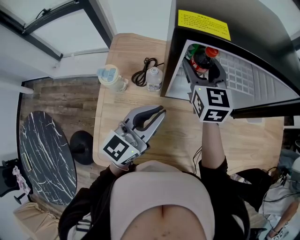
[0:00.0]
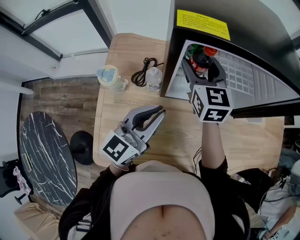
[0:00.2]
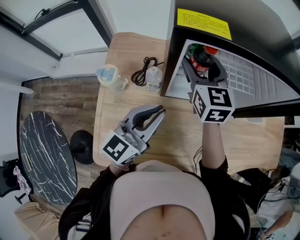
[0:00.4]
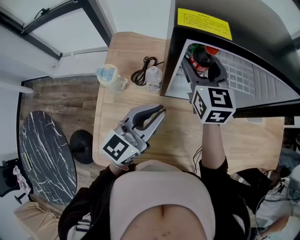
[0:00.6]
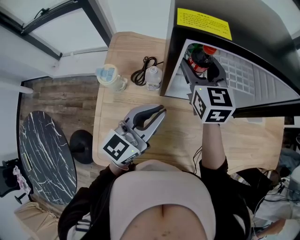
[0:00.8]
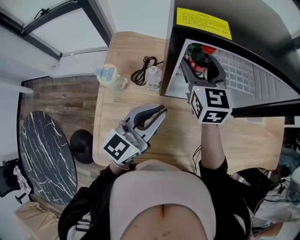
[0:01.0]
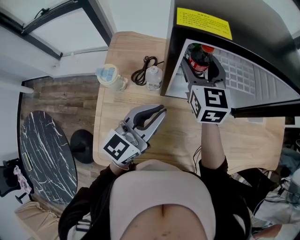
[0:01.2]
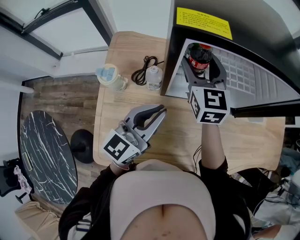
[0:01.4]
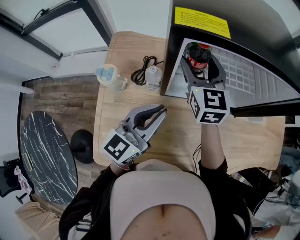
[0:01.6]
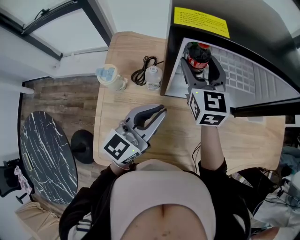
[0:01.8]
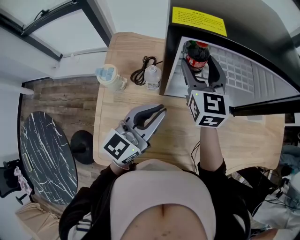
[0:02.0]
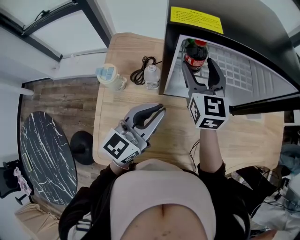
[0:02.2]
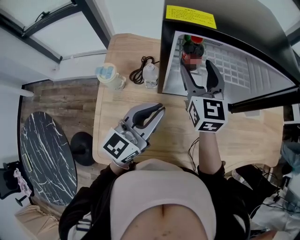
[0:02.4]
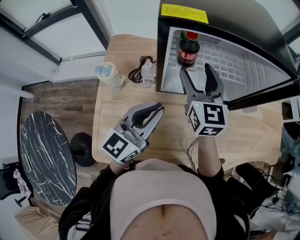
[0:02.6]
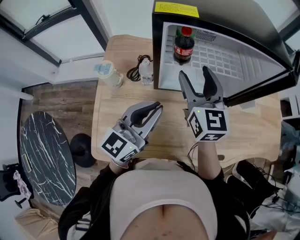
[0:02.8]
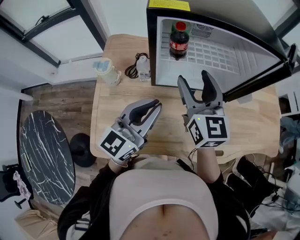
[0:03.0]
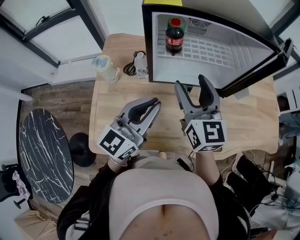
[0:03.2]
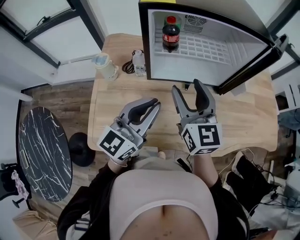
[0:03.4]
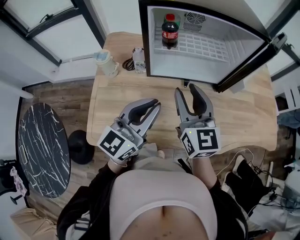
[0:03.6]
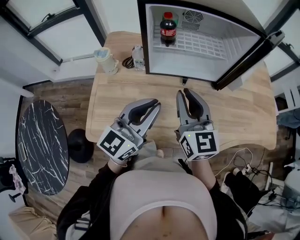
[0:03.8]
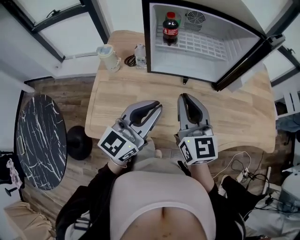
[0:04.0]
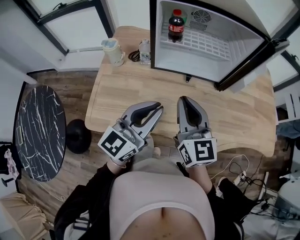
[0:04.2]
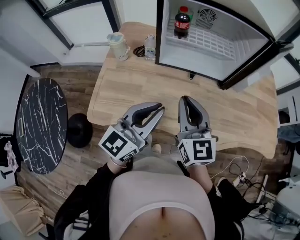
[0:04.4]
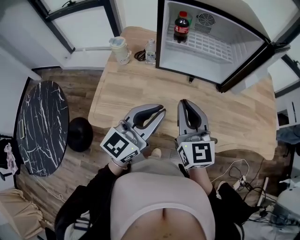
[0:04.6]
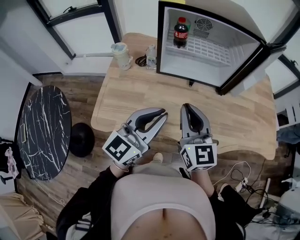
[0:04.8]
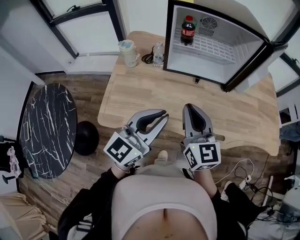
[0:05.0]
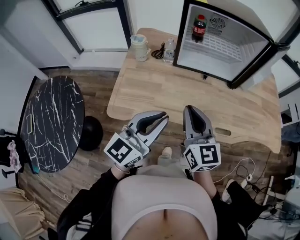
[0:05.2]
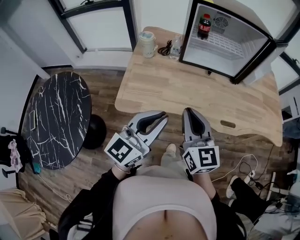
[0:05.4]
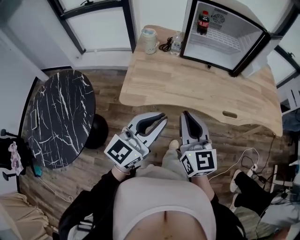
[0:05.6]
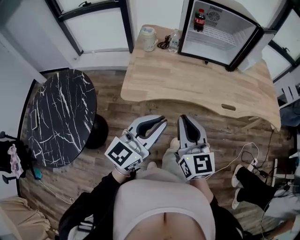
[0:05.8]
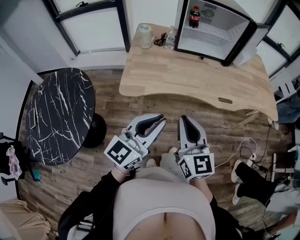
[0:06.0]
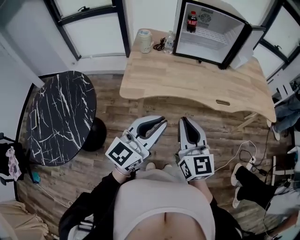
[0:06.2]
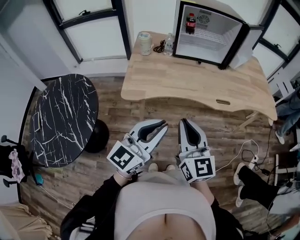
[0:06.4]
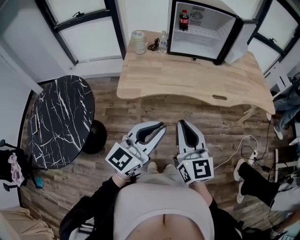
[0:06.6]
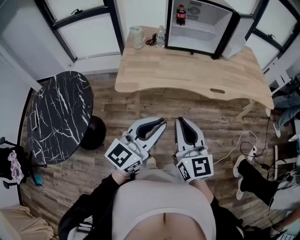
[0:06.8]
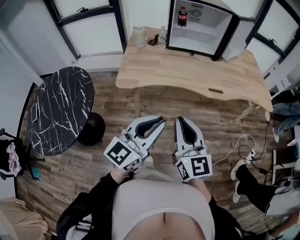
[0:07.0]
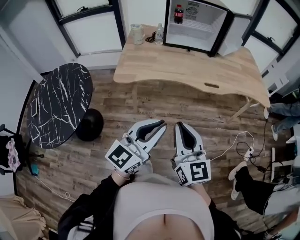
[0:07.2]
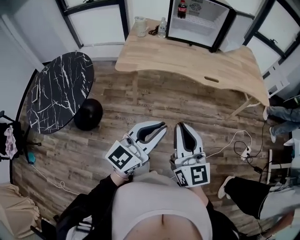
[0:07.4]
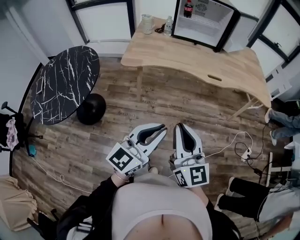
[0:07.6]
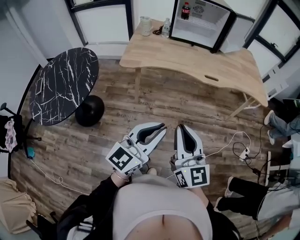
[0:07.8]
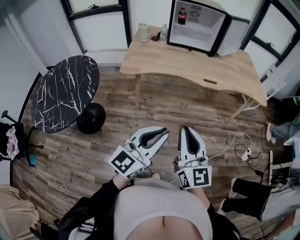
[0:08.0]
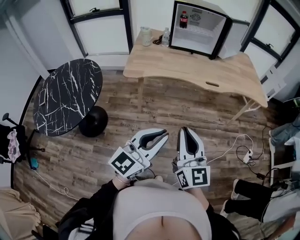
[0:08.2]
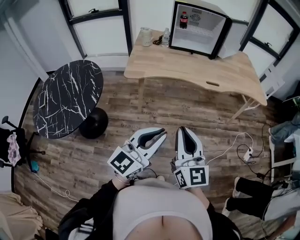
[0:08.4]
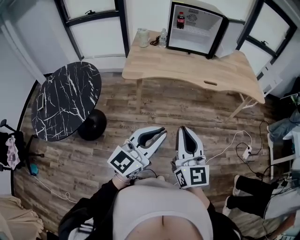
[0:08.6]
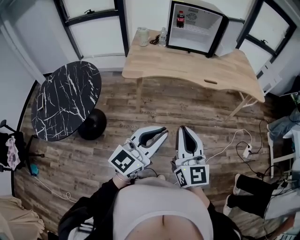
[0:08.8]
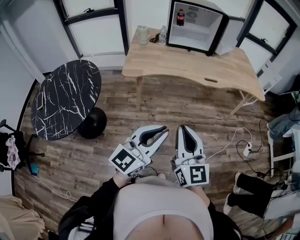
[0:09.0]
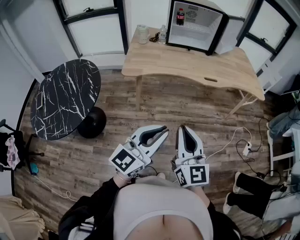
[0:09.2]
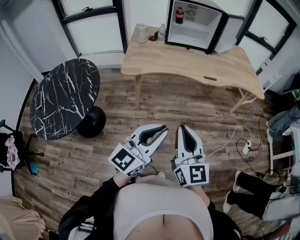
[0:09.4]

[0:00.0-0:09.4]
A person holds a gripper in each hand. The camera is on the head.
0.0 to 1.6 s: Neither gripper changes place.
1.6 to 3.2 s: The left gripper goes about 10 cm backward. Meanwhile the right gripper travels backward and to the right by approximately 20 cm.
3.2 to 4.8 s: Both grippers move backward, some 15 cm. The right gripper closes up.
4.8 to 6.2 s: Both grippers travel together backward, roughly 30 cm.
6.2 to 7.8 s: Both grippers travel together backward and to the right, approximately 25 cm.
7.8 to 9.4 s: The left gripper travels to the left by some 5 cm. The right gripper changes place by roughly 5 cm.

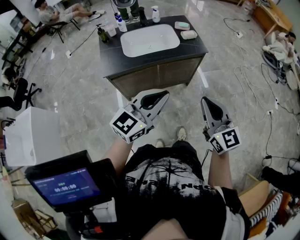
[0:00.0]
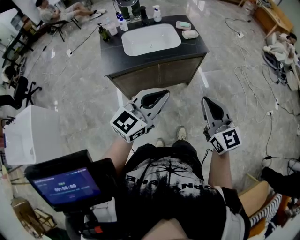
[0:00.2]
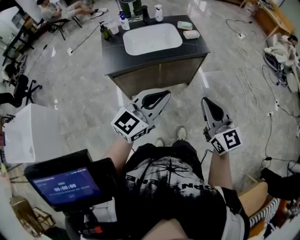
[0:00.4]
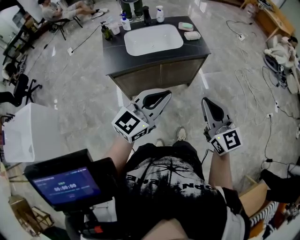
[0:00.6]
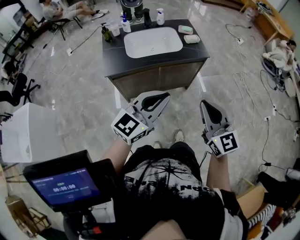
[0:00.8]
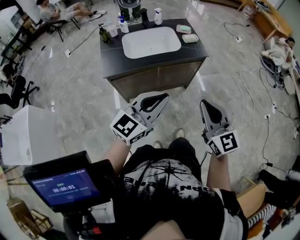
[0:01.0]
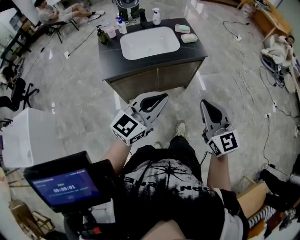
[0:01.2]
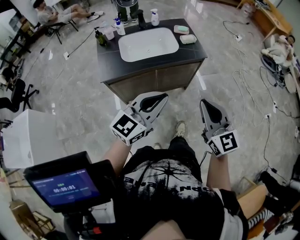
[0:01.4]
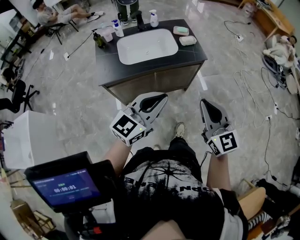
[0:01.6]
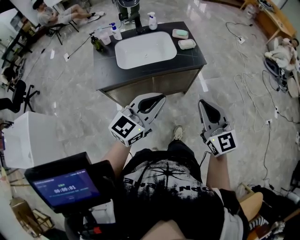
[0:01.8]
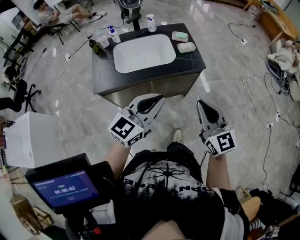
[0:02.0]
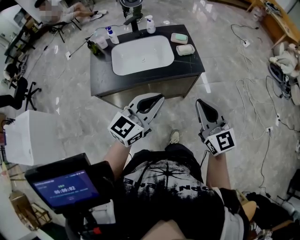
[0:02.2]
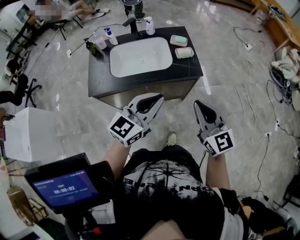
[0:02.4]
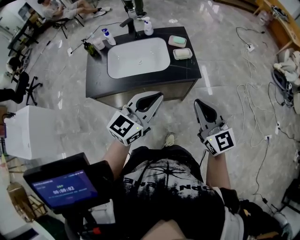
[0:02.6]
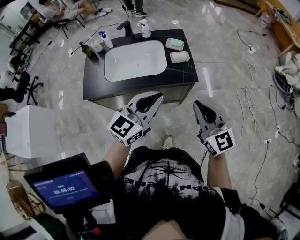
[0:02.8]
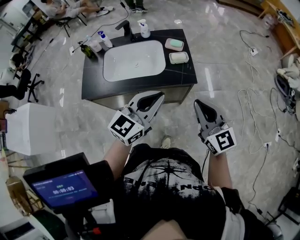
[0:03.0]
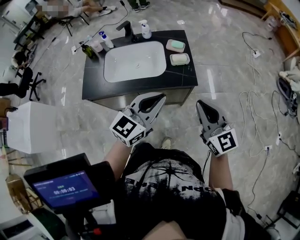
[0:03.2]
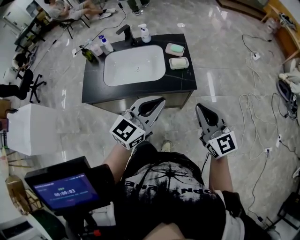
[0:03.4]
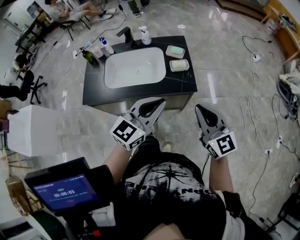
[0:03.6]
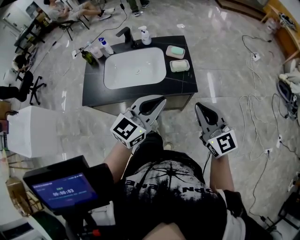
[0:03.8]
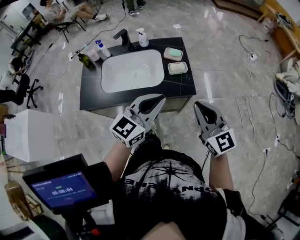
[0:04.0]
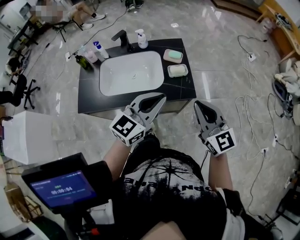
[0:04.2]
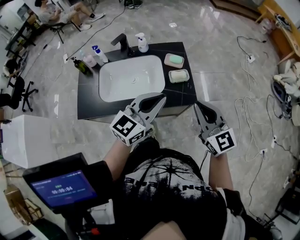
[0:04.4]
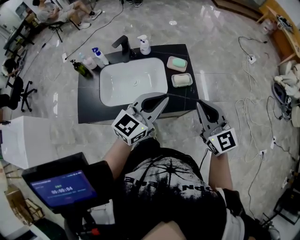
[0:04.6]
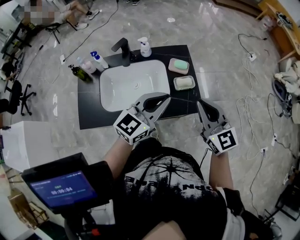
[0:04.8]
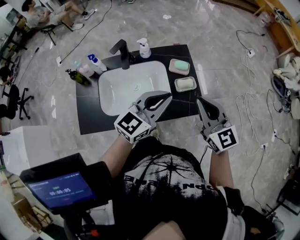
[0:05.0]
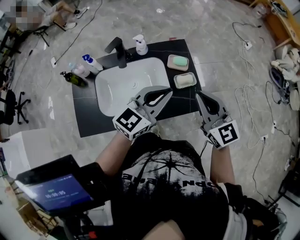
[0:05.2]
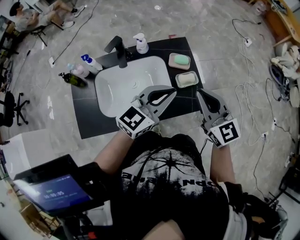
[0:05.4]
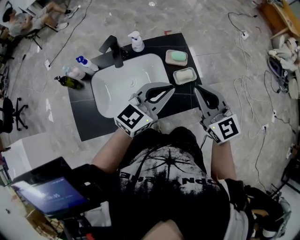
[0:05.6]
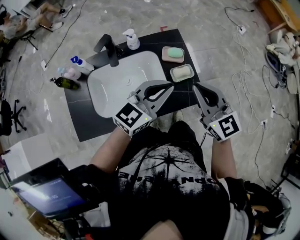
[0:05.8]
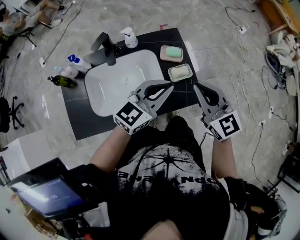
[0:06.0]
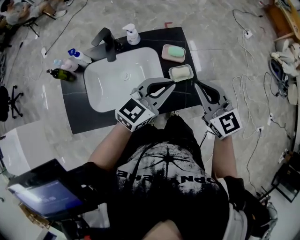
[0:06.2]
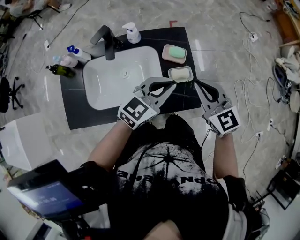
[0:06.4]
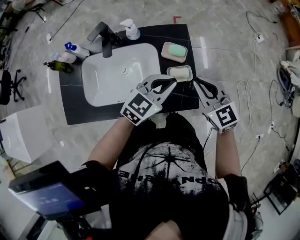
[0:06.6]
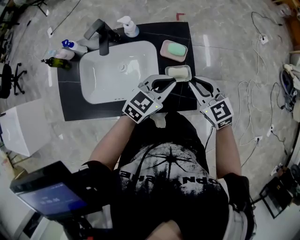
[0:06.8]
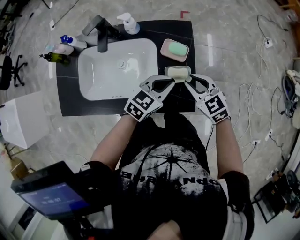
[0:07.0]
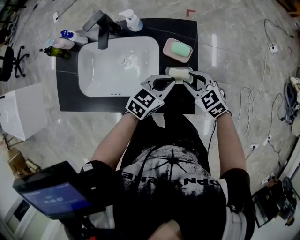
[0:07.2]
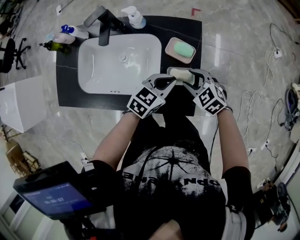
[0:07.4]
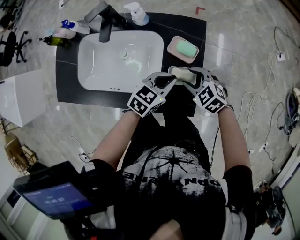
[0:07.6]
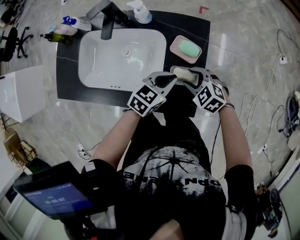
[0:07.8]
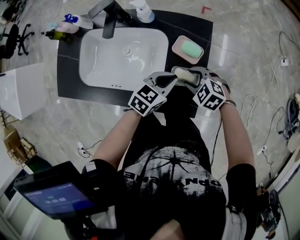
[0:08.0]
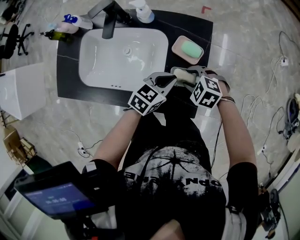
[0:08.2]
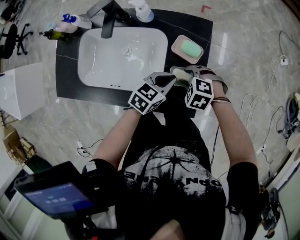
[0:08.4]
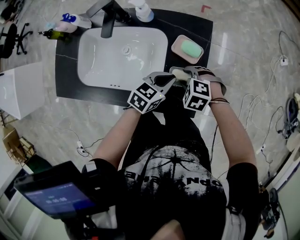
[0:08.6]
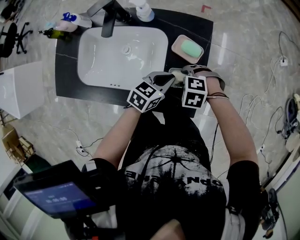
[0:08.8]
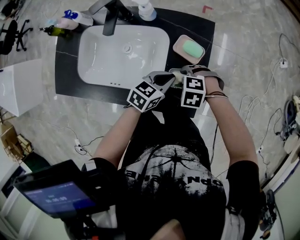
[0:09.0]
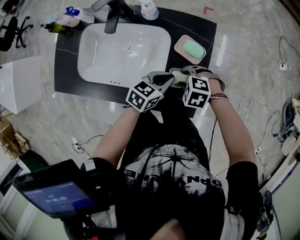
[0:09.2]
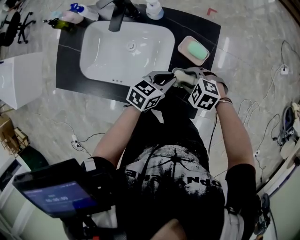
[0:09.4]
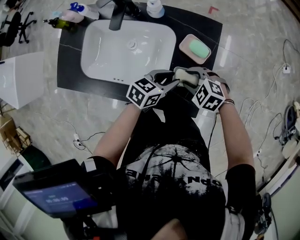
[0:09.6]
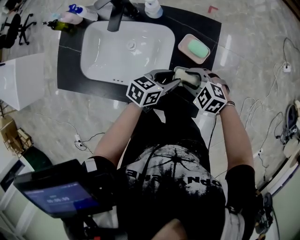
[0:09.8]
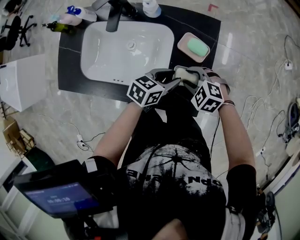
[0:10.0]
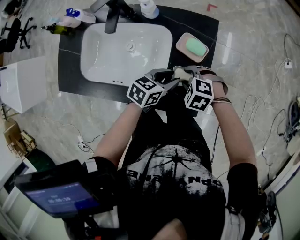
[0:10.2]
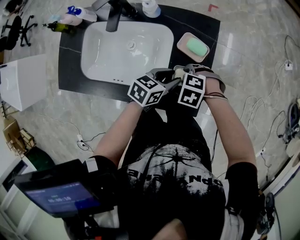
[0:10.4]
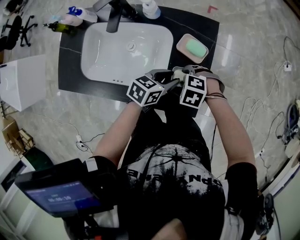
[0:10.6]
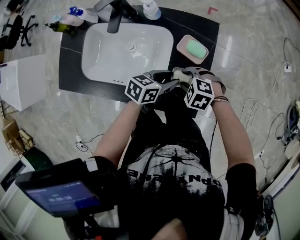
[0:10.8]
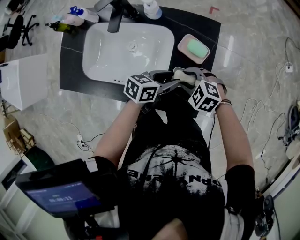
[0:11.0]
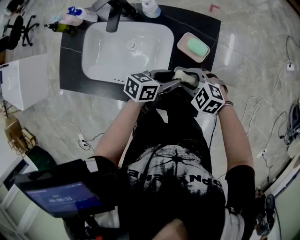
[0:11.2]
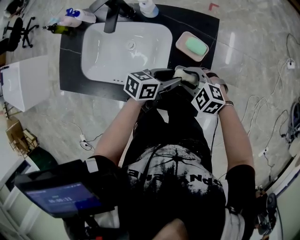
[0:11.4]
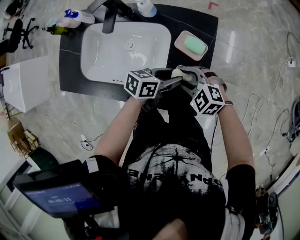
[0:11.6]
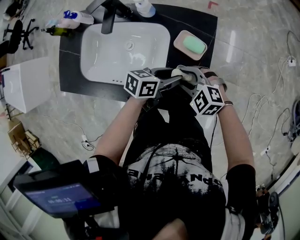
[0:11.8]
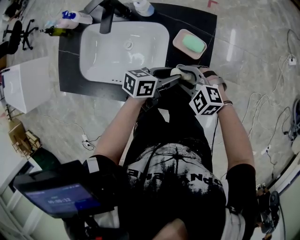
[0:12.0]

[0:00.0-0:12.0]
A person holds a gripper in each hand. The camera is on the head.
0.0 to 1.6 s: The grippers both shift forward by roughly 5 cm.
1.6 to 3.0 s: Both grippers travel together forward and to the right, approximately 25 cm.
3.0 to 4.4 s: Both grippers travel together forward, roughly 15 cm.
4.4 to 6.0 s: The right gripper is displaced forward and to the left by roughly 15 cm. Meanwhile the left gripper goes roughly 10 cm forward.
6.0 to 7.6 s: Both grippers move downward, roughly 25 cm. The right gripper tips its fingers downward by roughly 40 degrees, and opens its fingers; the left gripper rotates roughly 30 degrees.
7.6 to 9.0 s: The right gripper rotates about 40 degrees.
9.0 to 10.4 s: The left gripper opens.
10.4 to 12.0 s: The right gripper tips its fingers upward by approximately 30 degrees.

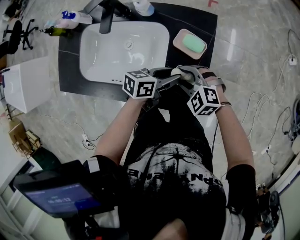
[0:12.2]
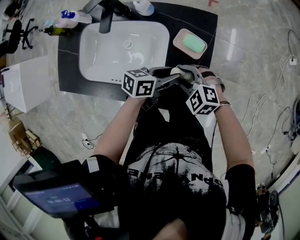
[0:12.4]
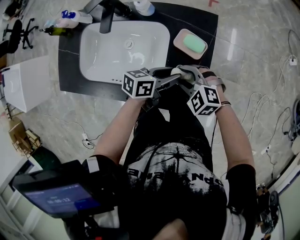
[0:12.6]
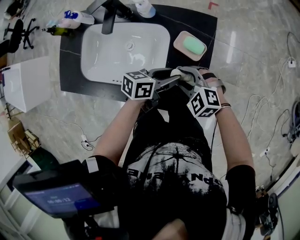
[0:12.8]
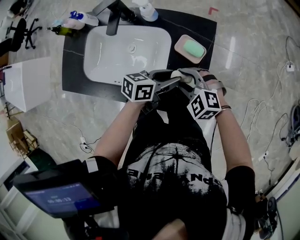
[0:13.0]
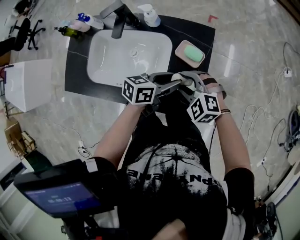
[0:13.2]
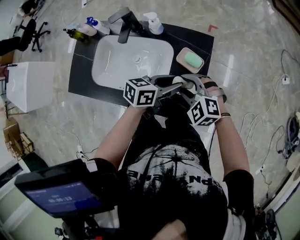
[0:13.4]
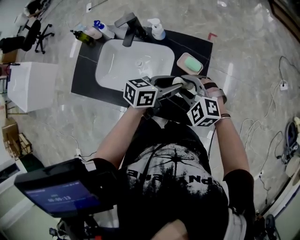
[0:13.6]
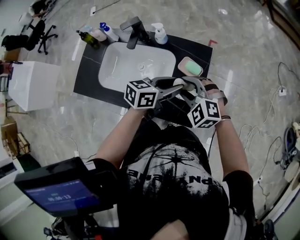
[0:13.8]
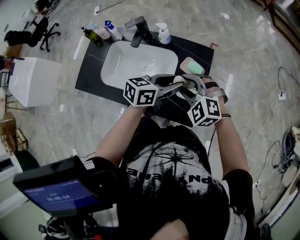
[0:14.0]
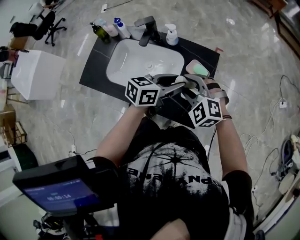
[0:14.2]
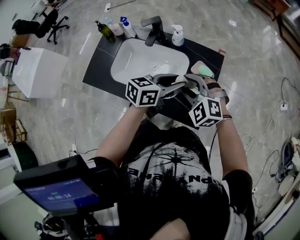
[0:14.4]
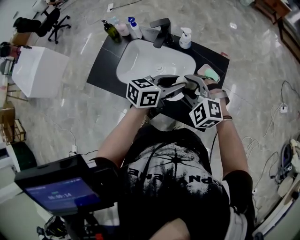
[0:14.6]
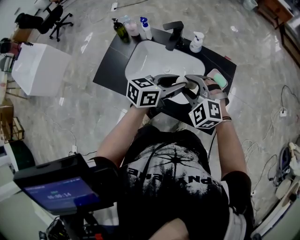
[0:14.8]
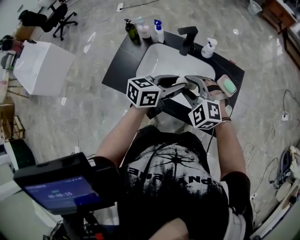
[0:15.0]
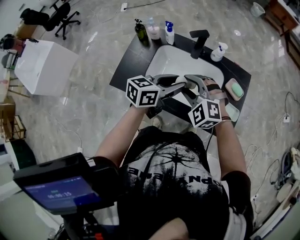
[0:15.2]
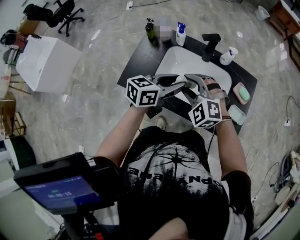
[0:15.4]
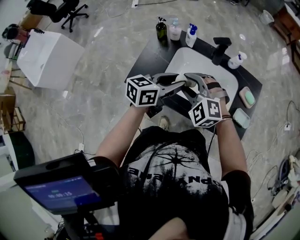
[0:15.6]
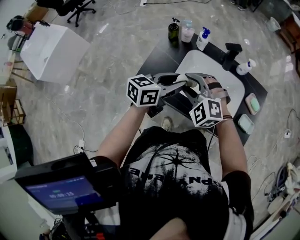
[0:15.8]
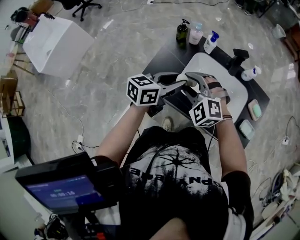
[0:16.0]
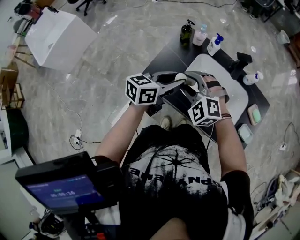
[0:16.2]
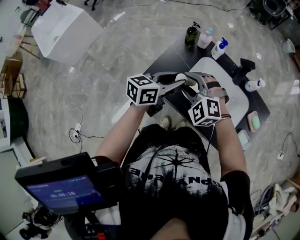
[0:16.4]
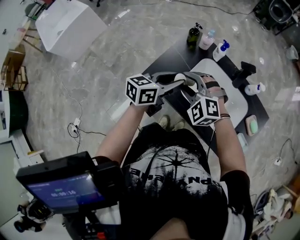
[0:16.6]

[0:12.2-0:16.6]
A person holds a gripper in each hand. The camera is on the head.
12.2 to 13.6 s: The grippers both shift upward by about 15 cm.
13.6 to 15.2 s: The two grippers go about 25 cm to the left.
15.2 to 16.6 s: The grippers both shift to the left by roughly 20 cm. The left gripper swivels roughly 20 degrees, while the right gripper turns by approximately 20 degrees.
